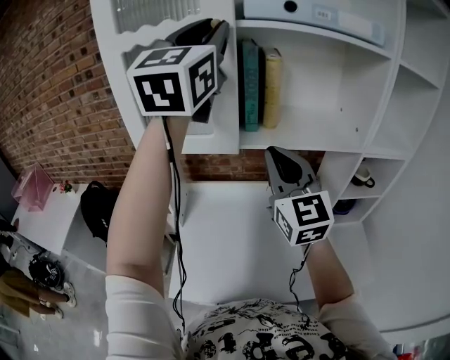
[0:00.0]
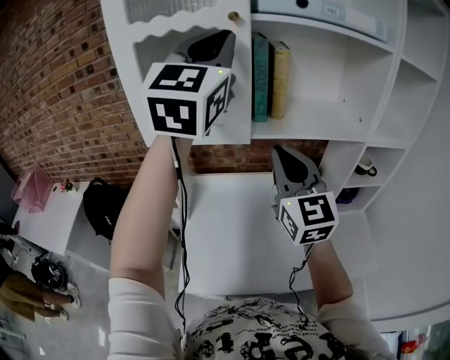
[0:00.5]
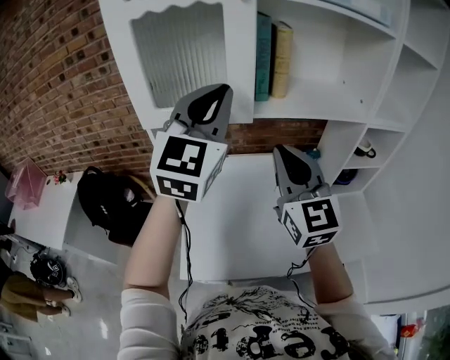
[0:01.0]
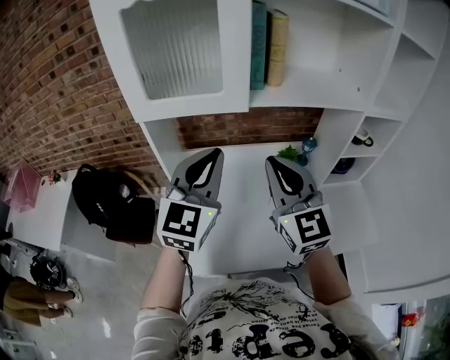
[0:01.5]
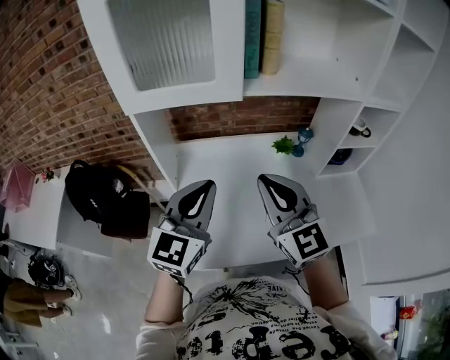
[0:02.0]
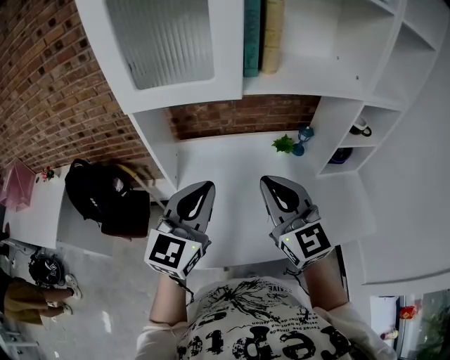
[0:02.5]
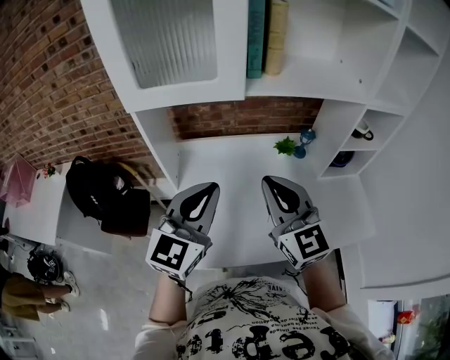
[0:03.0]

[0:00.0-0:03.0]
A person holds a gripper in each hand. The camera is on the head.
0:00.0 to 0:01.5: The left gripper travels downward by about 35 cm, and swivels about 20 degrees. The right gripper shifts roughly 15 cm downward, backward and to the left.
0:01.5 to 0:03.0: Both grippers move downward, approximately 5 cm.

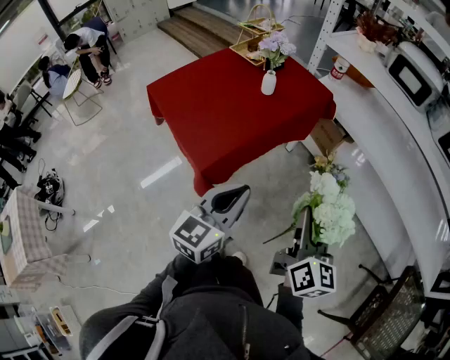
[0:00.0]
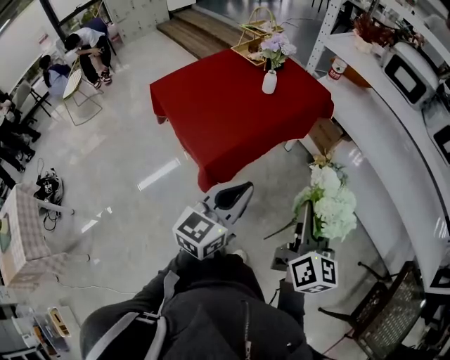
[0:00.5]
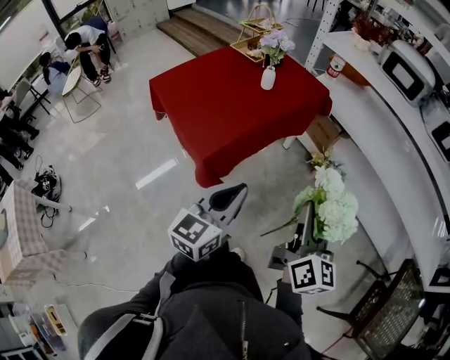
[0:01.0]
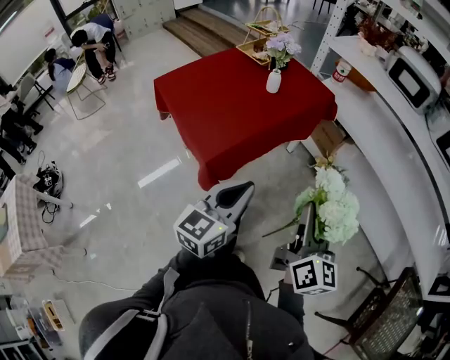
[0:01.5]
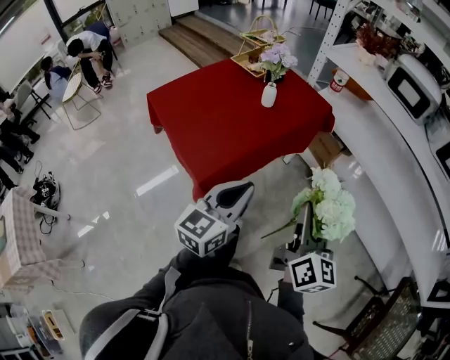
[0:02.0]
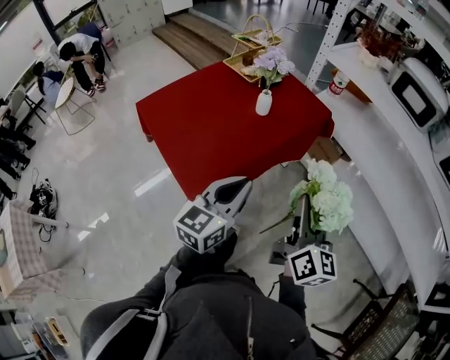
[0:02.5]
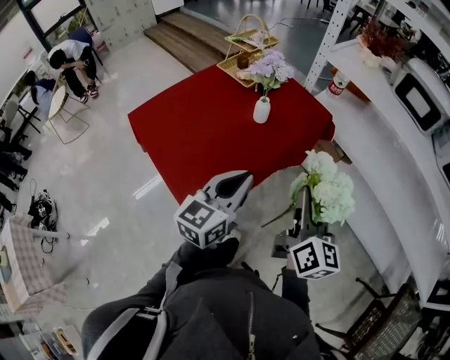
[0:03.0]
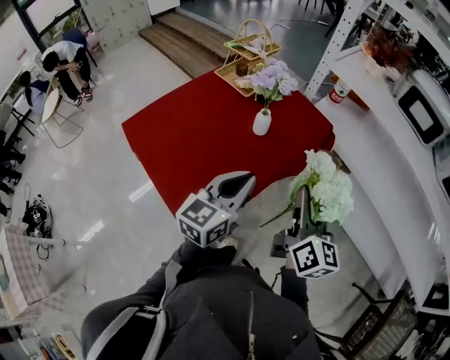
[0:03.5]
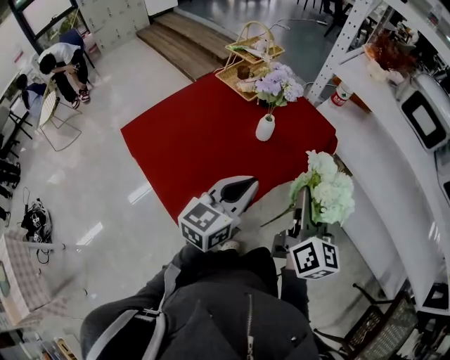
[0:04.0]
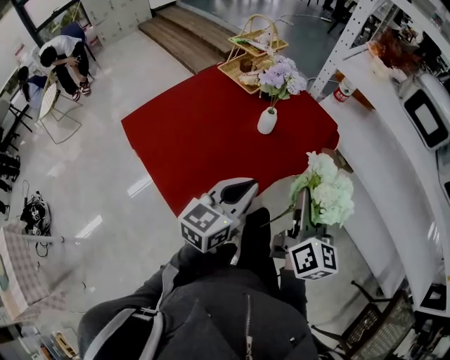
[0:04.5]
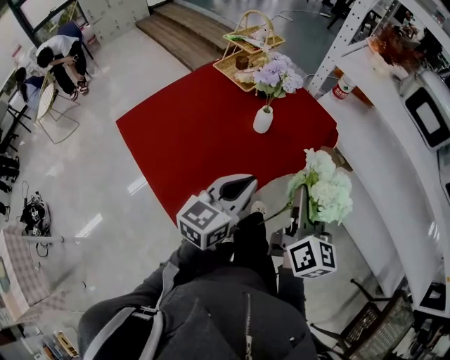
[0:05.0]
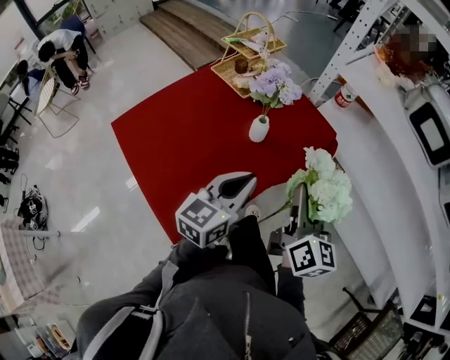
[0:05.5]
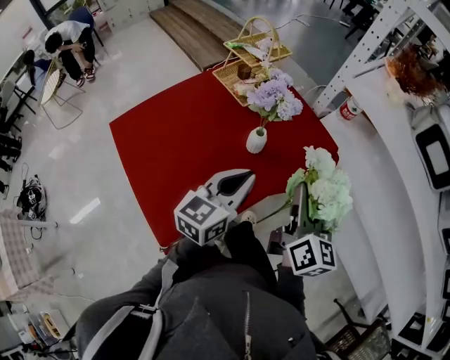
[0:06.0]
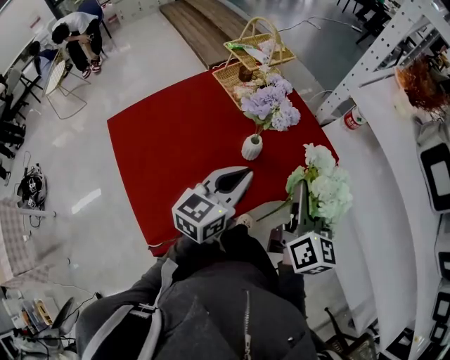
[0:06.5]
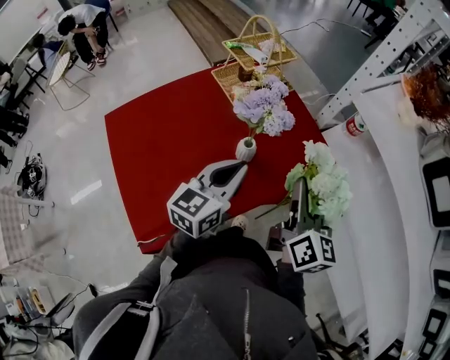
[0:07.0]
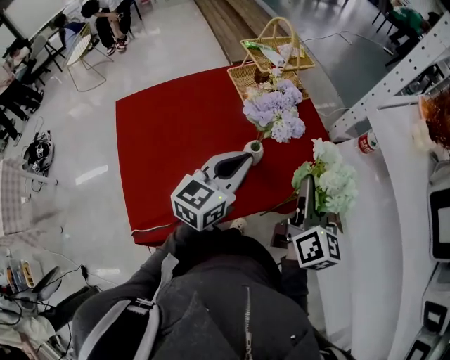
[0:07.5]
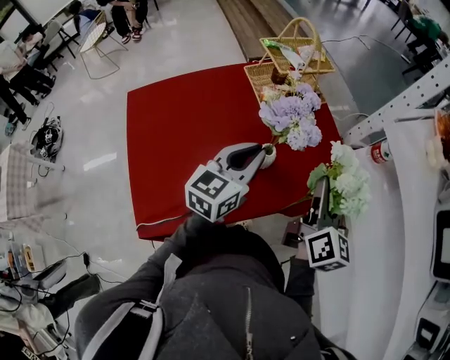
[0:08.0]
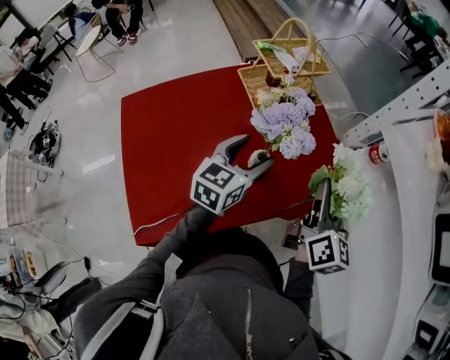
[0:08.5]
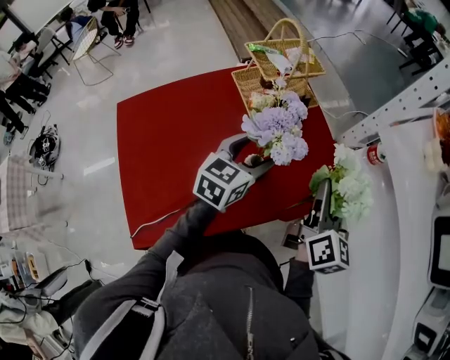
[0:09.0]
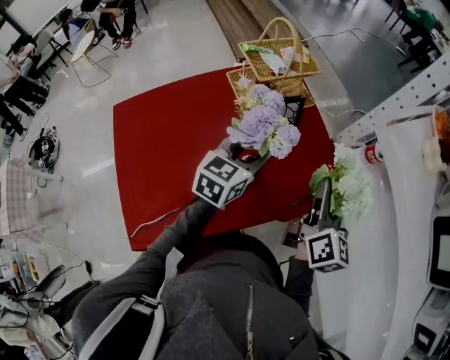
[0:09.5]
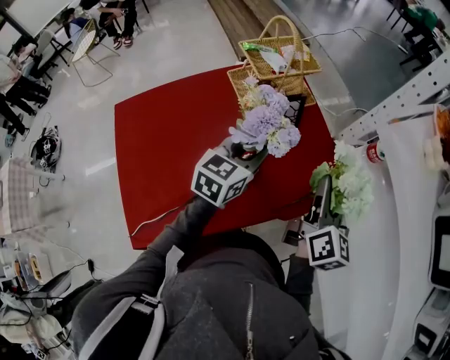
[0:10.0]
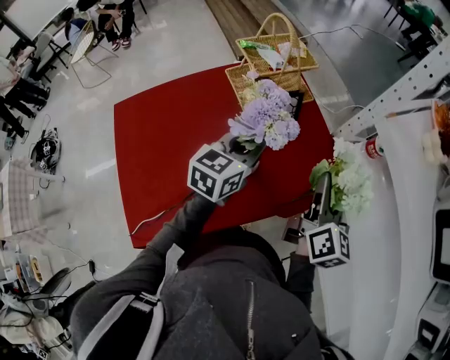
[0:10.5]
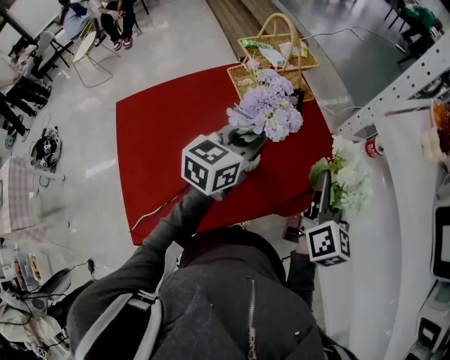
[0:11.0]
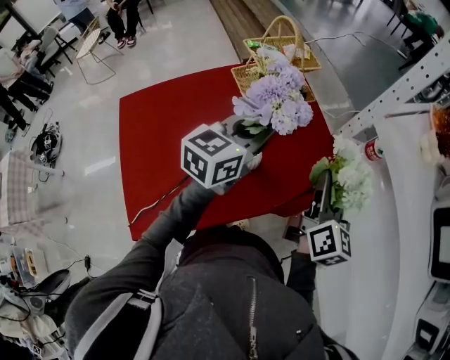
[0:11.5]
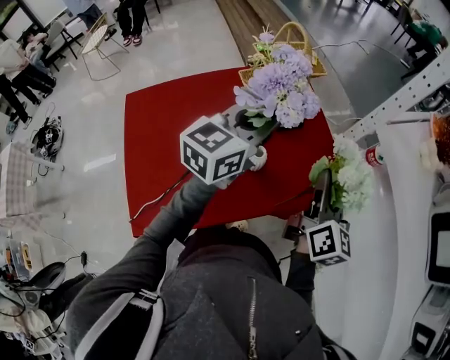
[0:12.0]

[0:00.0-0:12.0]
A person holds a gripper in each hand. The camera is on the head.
0:00.0 to 0:02.0: The grippers move only a little.
0:02.0 to 0:04.0: The right gripper travels forward and to the left by about 25 cm. Meanwhile the left gripper travels forward by approximately 20 cm.
0:04.0 to 0:06.0: The two grippers go some 10 cm forward.
0:06.0 to 0:08.0: Both grippers travel together forward, approximately 15 cm. The left gripper changes its angle by about 20 degrees.
0:08.0 to 0:10.0: The right gripper heads forward, covering roughly 5 cm. The left gripper goes roughly 10 cm forward, and opens, then closes once more.
0:10.0 to 0:12.0: The left gripper heads upward, covering some 15 cm.

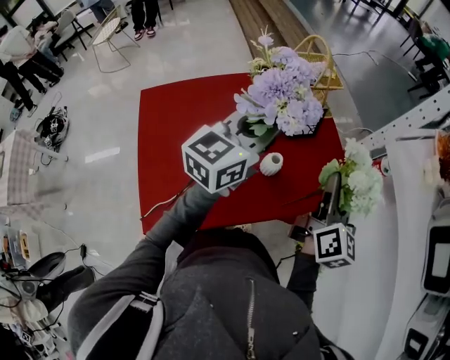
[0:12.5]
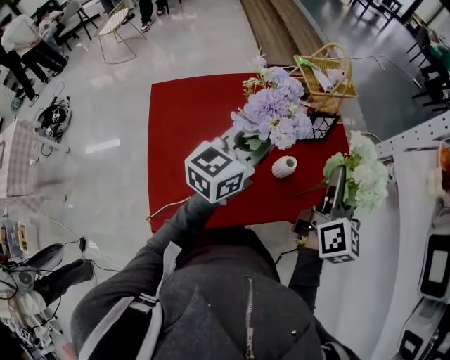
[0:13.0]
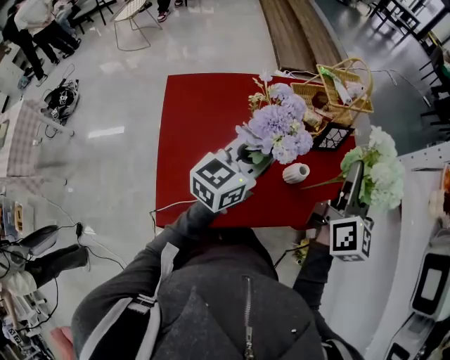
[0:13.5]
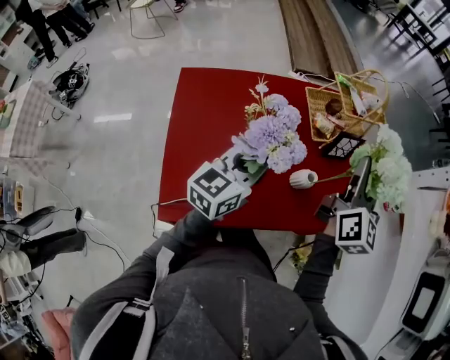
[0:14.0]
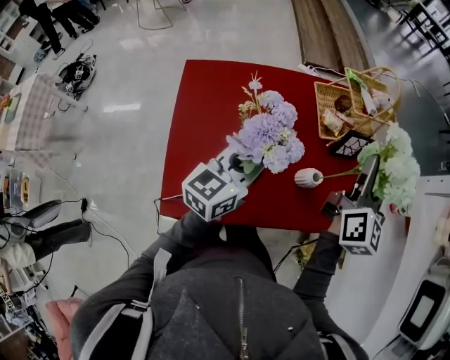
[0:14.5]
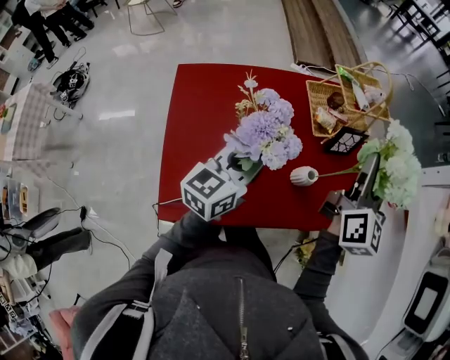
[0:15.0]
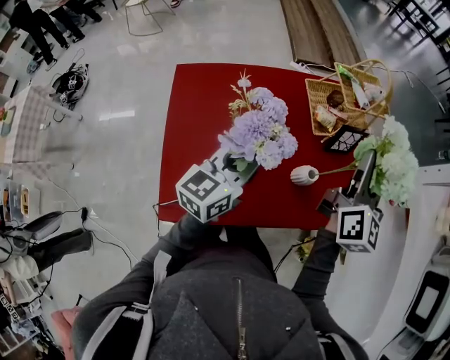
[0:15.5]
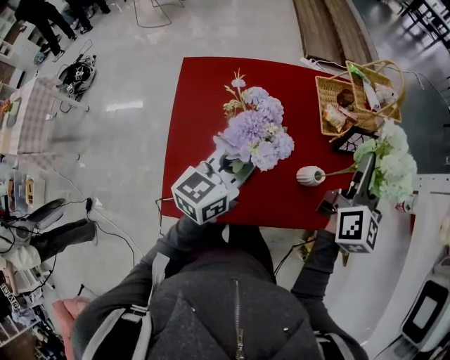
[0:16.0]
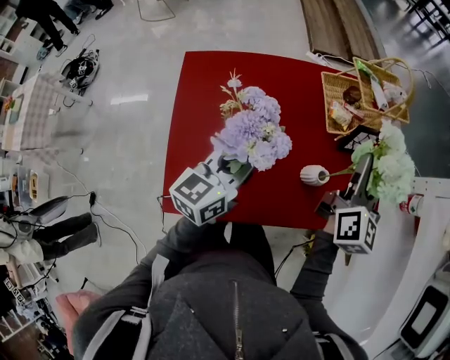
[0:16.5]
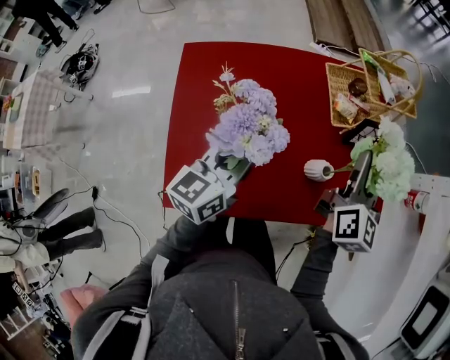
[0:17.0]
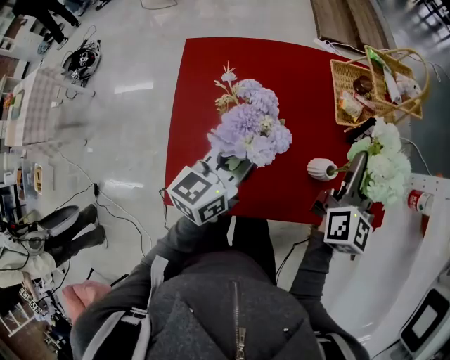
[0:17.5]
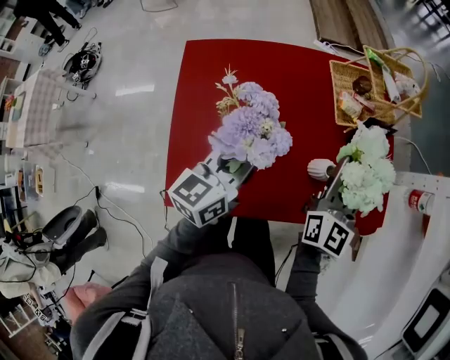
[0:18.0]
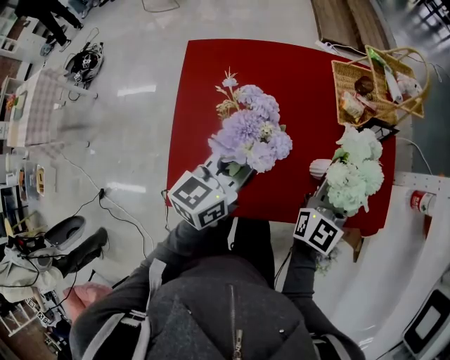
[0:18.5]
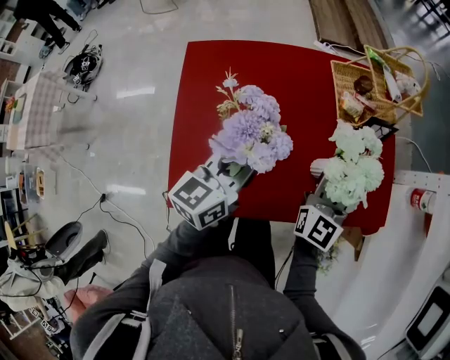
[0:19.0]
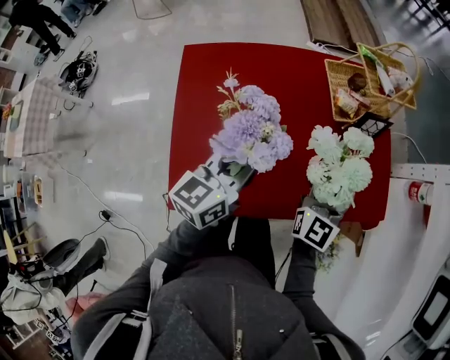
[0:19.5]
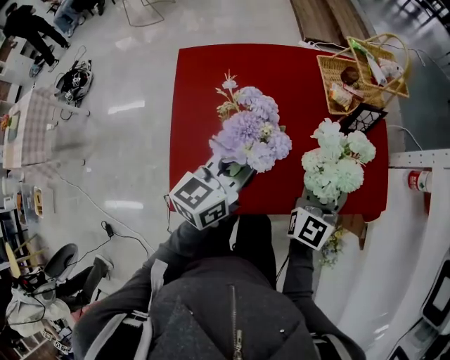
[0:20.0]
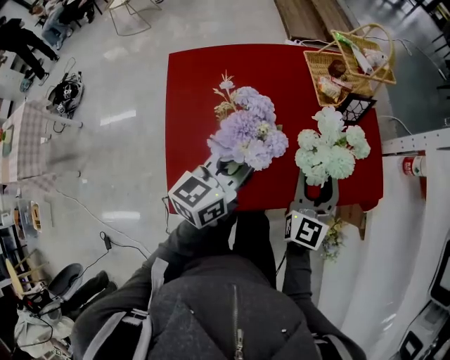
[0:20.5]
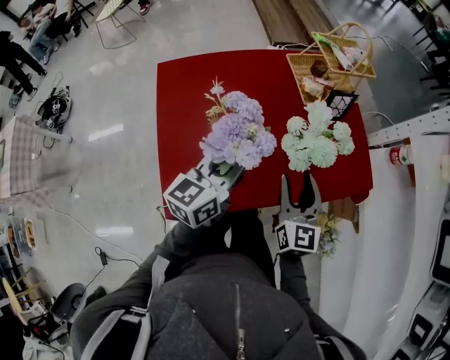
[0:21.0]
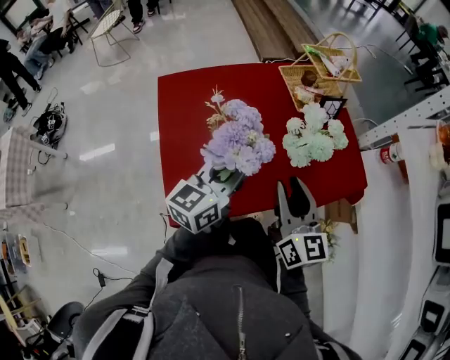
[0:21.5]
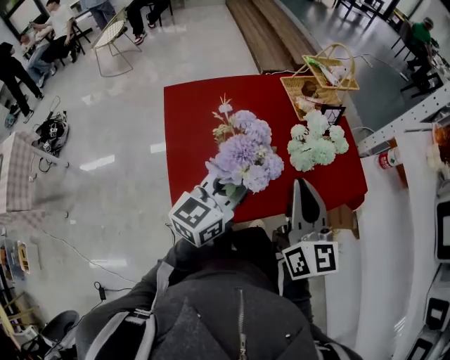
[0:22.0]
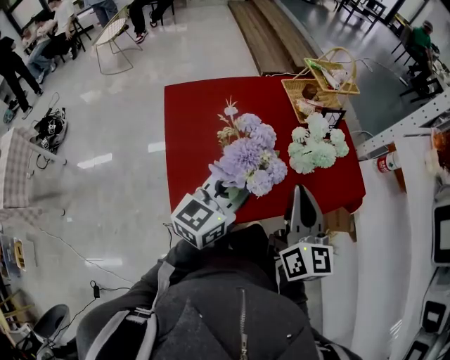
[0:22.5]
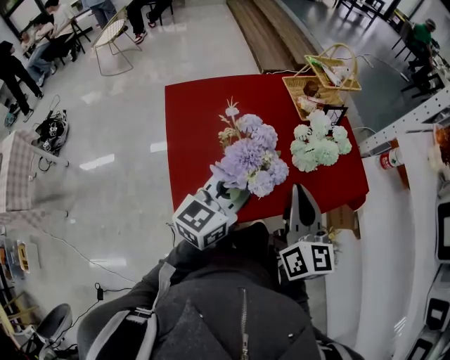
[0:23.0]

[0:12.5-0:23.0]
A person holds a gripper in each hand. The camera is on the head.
0:12.5 to 0:14.5: The left gripper moves to the left, downward and backward, about 15 cm. Meanwhile the right gripper is displaced to the left and forward by approximately 15 cm.
0:14.5 to 0:16.5: The grippers stay close to where they were, moving slightly.
0:16.5 to 0:19.0: The right gripper shifts approximately 10 cm downward and to the left, and changes its angle by about 20 degrees.
0:19.0 to 0:21.0: The right gripper goes roughly 15 cm backward, and opens up; the left gripper shifts by approximately 5 cm.
0:21.0 to 0:23.0: The right gripper heads upward and backward, covering roughly 15 cm, and closes up. The left gripper travels backward by some 5 cm.

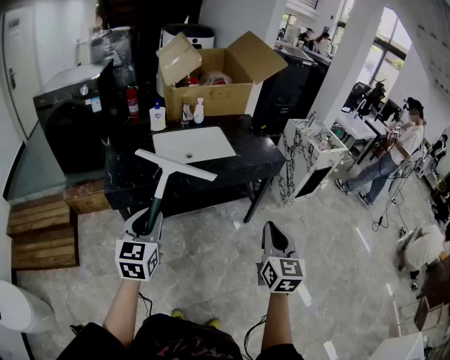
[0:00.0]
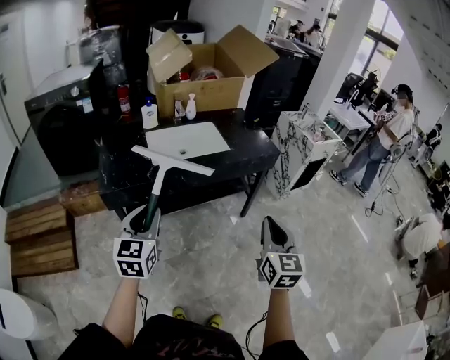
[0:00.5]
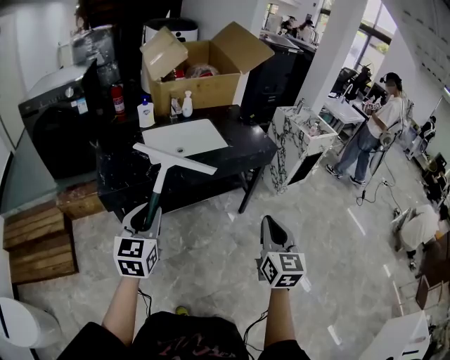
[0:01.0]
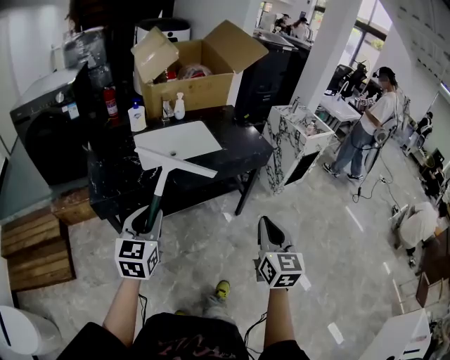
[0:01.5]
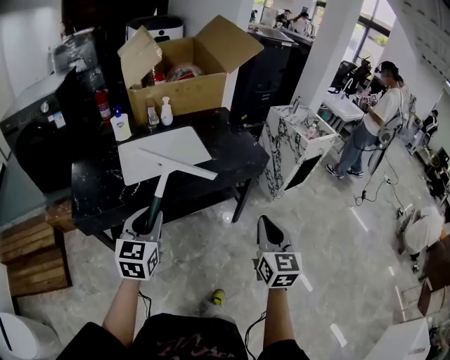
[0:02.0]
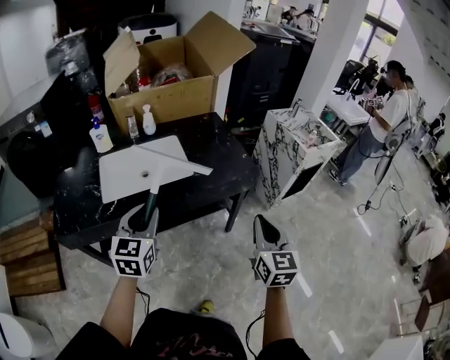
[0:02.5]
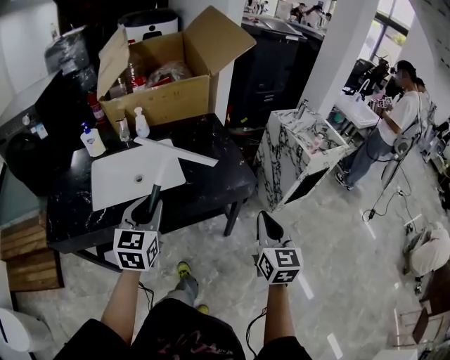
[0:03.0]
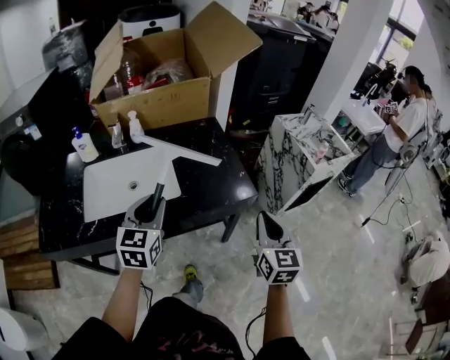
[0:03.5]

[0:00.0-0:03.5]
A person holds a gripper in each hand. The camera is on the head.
0:00.0 to 0:02.0: The grippers both shift forward and to the right by approximately 15 cm.
0:02.0 to 0:03.5: The two grippers go approximately 30 cm forward and to the right.
